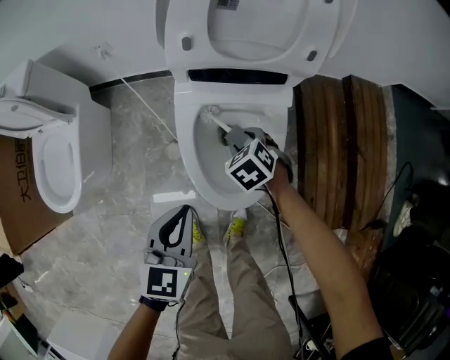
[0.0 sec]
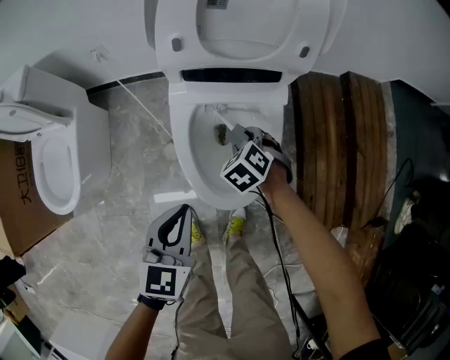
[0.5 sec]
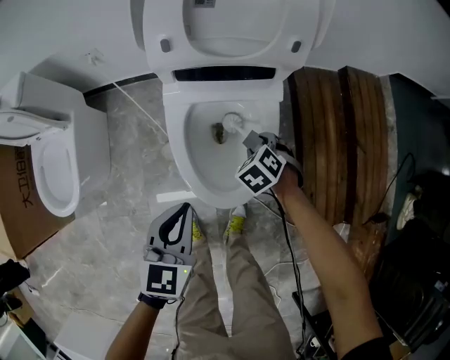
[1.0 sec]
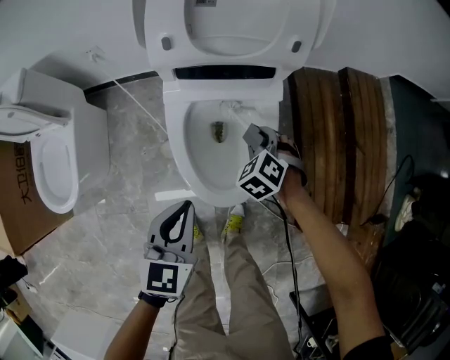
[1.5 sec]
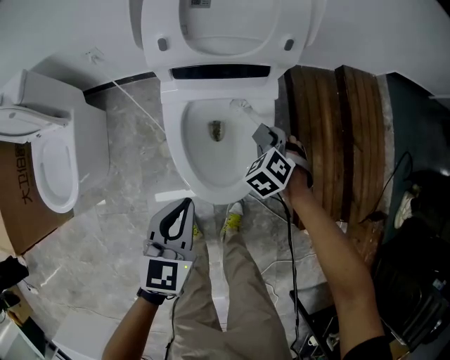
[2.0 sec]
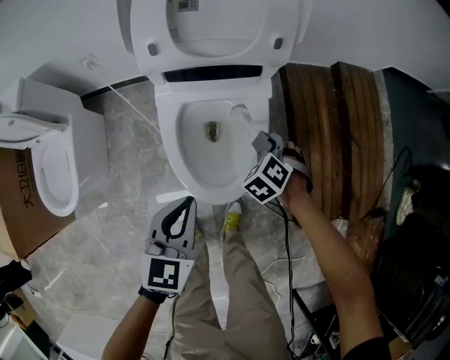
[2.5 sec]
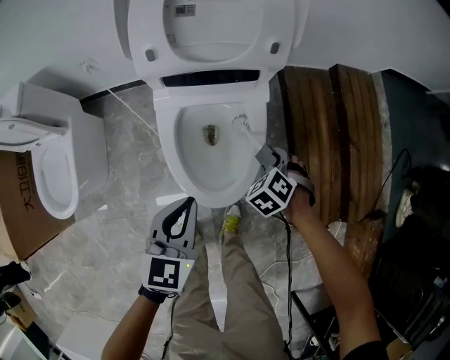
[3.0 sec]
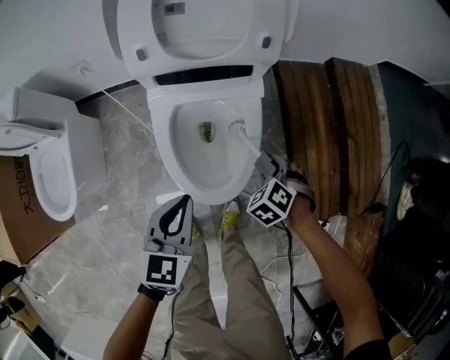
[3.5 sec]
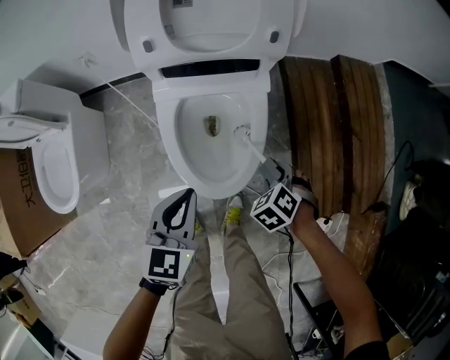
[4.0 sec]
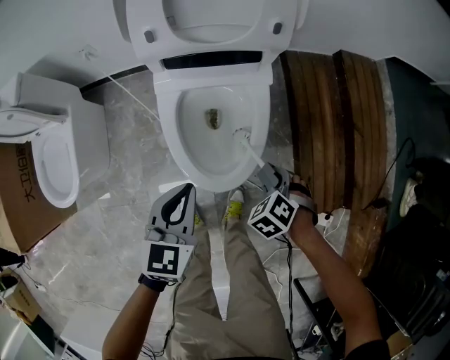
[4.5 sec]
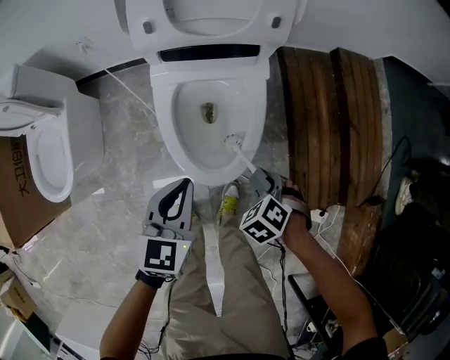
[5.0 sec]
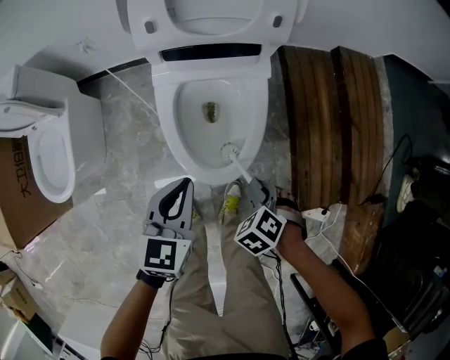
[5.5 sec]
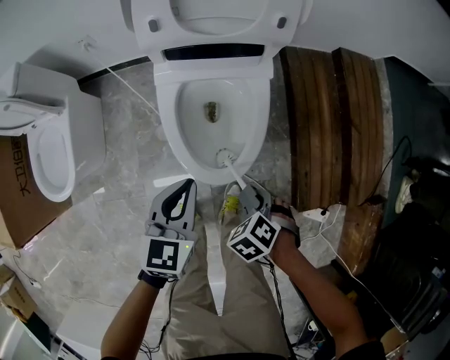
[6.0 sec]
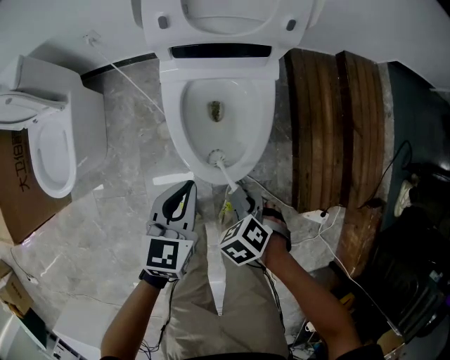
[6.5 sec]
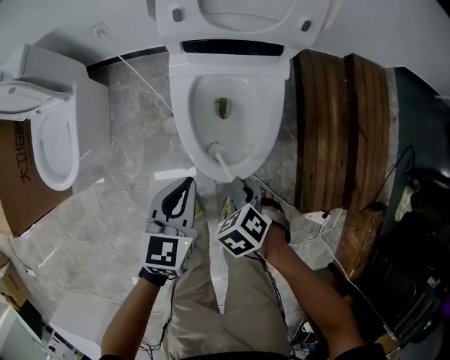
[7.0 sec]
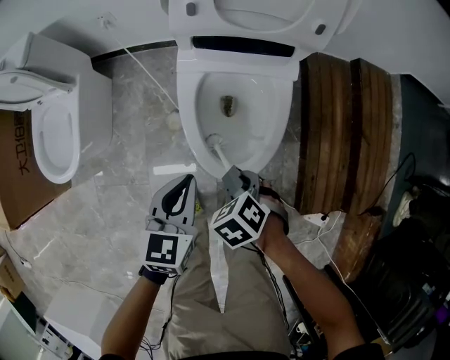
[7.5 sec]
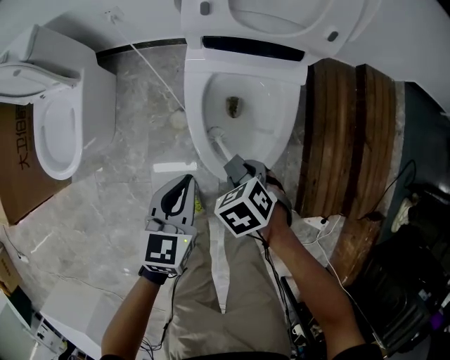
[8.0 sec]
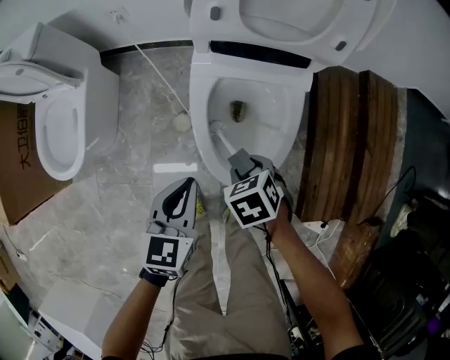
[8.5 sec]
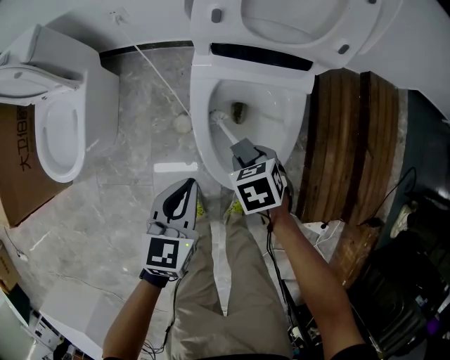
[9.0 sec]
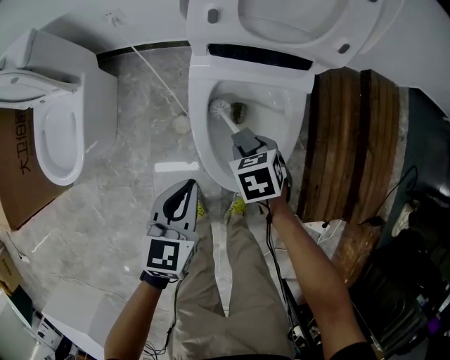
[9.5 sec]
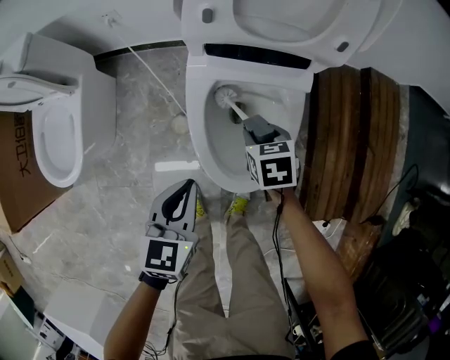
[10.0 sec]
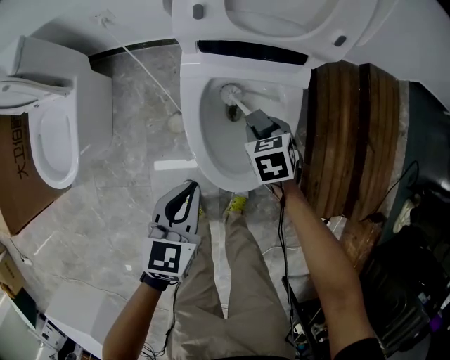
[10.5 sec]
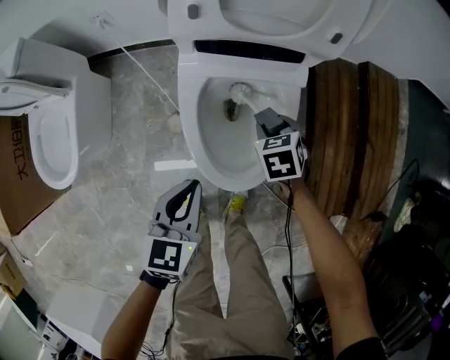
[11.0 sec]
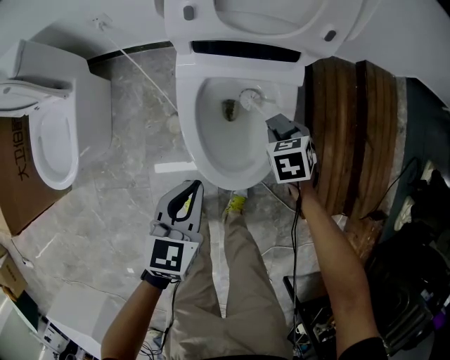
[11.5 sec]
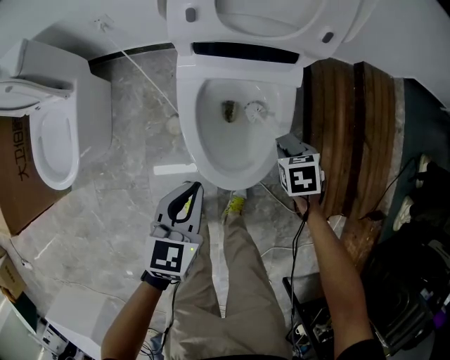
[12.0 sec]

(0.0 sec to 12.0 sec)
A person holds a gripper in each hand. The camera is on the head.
6.0 sec - 8.0 sec: The left gripper ends up some 10 cm from where it was.

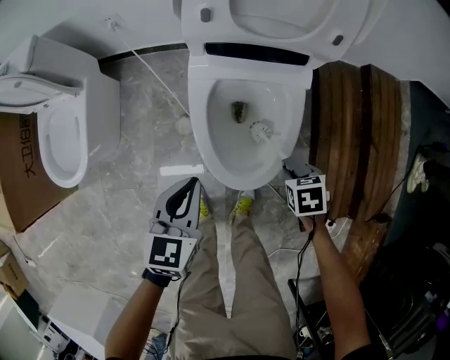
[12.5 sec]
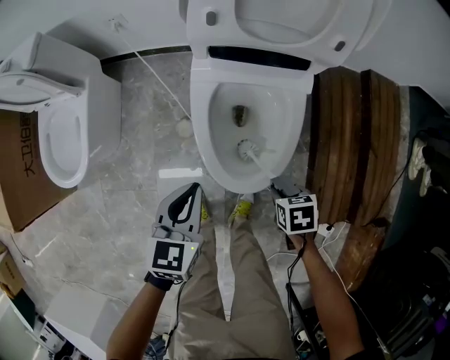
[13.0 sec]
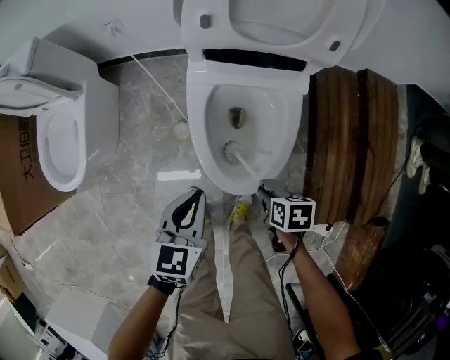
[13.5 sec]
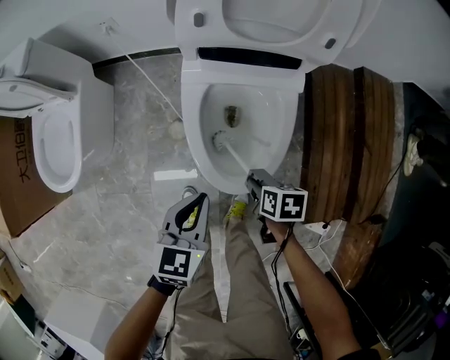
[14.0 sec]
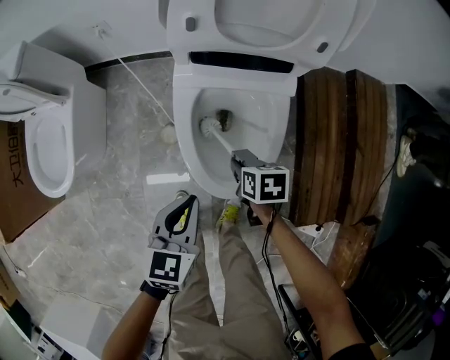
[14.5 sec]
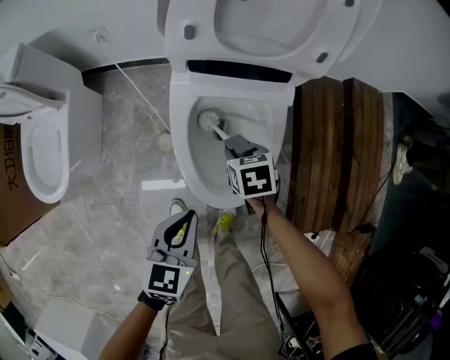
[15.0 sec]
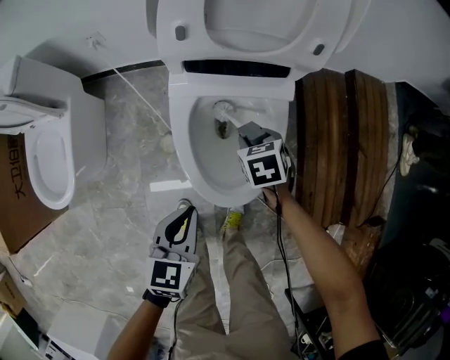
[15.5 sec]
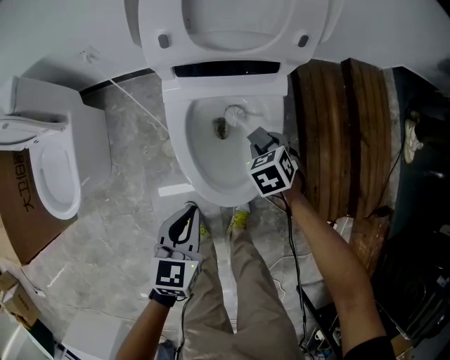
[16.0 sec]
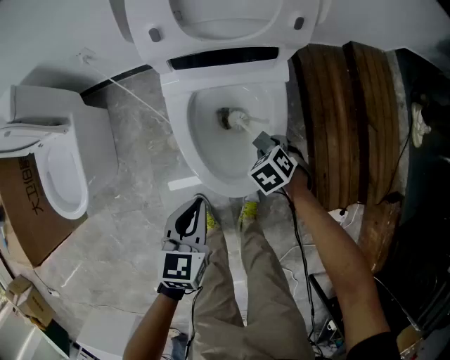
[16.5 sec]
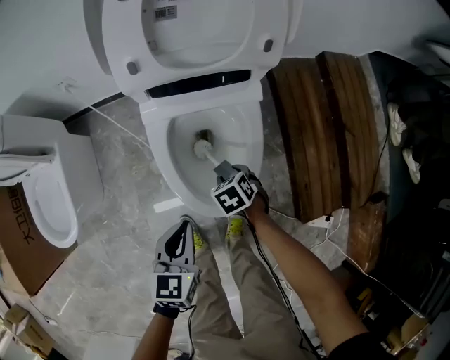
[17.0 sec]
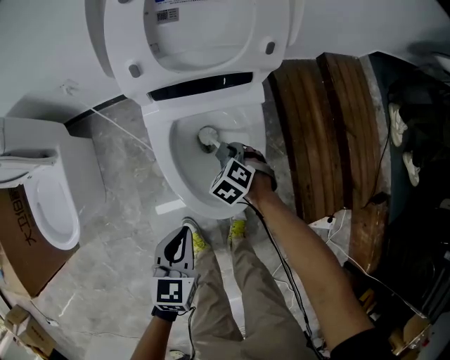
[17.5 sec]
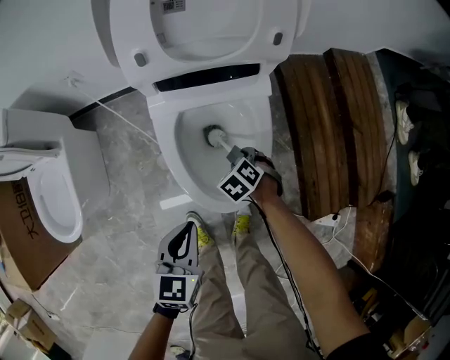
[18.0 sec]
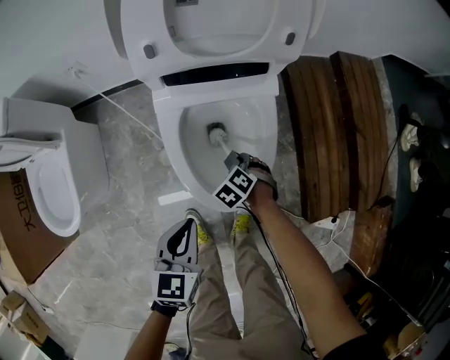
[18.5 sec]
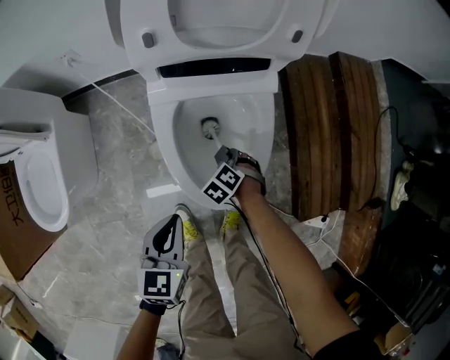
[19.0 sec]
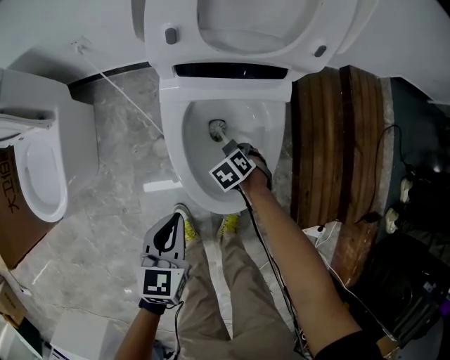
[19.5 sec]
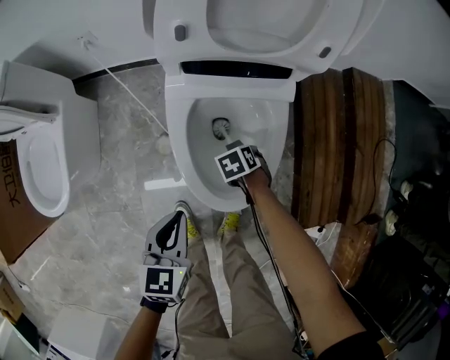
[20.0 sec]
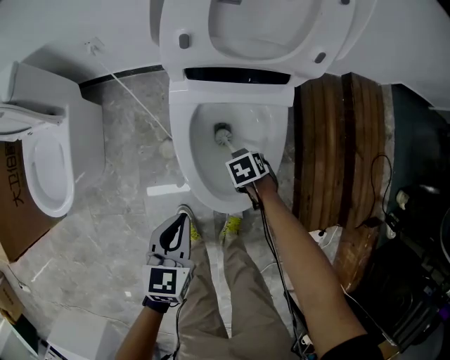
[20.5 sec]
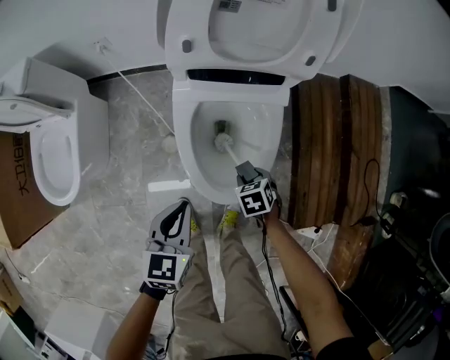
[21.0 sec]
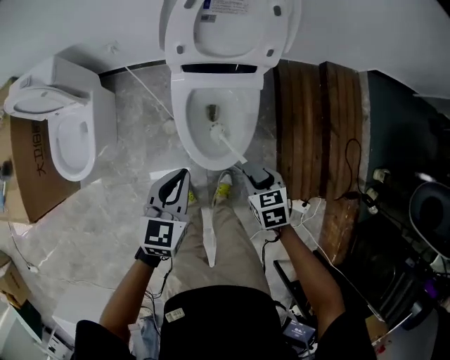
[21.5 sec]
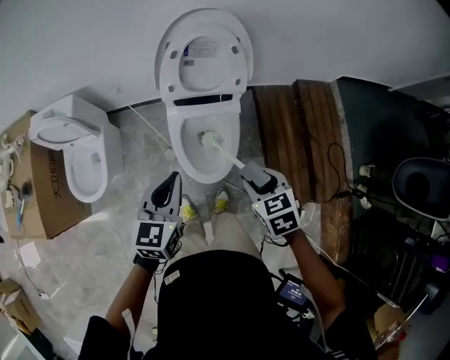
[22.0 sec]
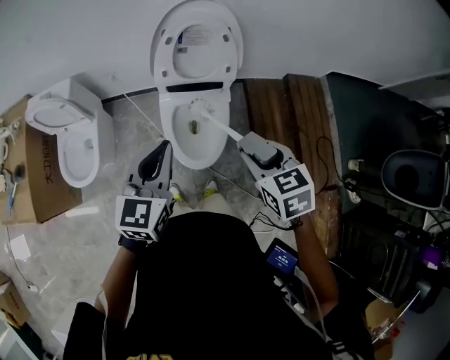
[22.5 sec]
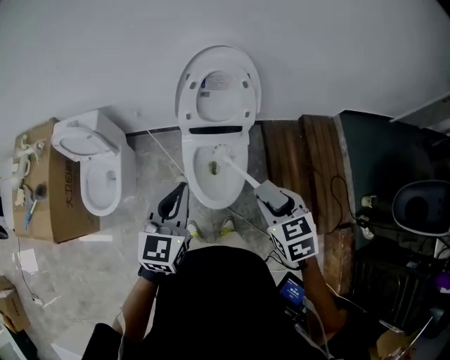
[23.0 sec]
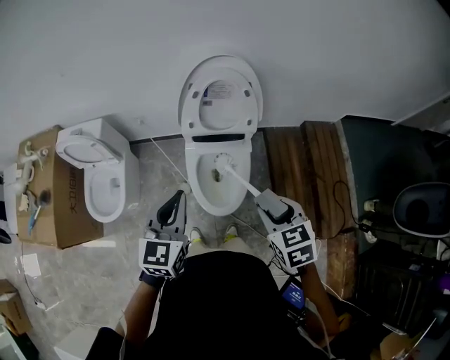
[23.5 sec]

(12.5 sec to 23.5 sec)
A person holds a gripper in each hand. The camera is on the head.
20.0 sec - 21.5 sec: The left gripper shifts some 20 cm upward.
21.5 sec - 23.5 sec: The left gripper moves upward, approximately 25 cm.

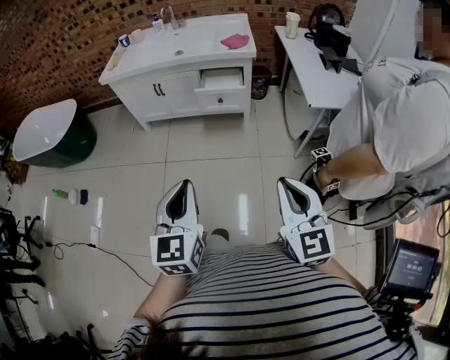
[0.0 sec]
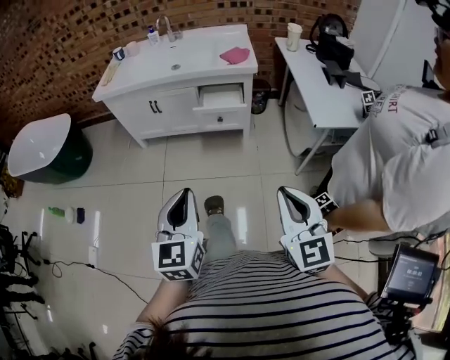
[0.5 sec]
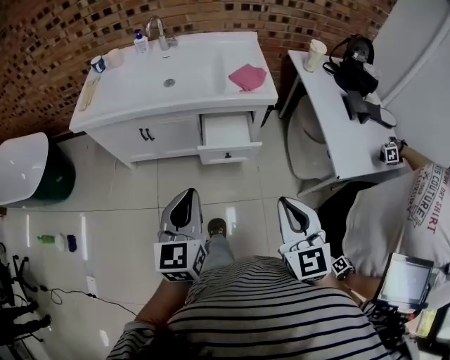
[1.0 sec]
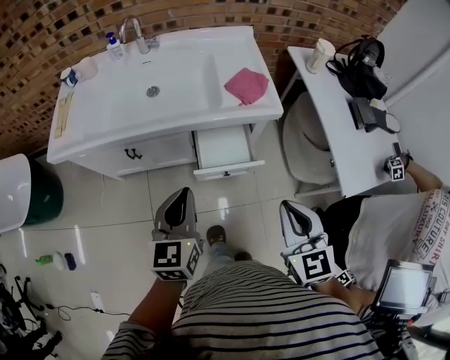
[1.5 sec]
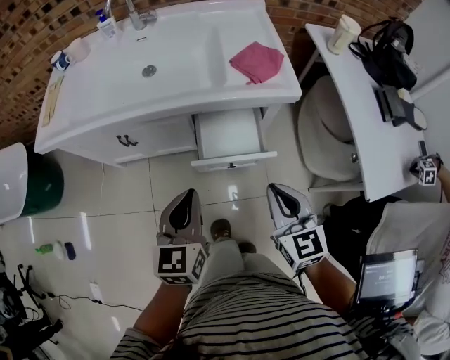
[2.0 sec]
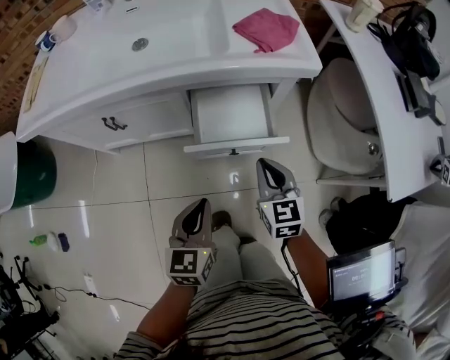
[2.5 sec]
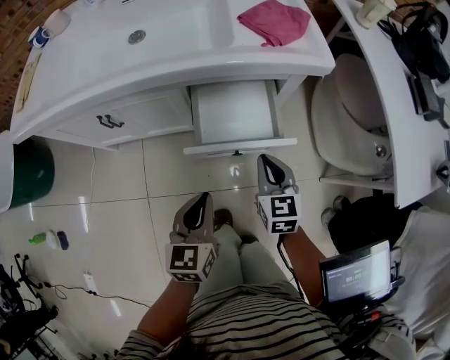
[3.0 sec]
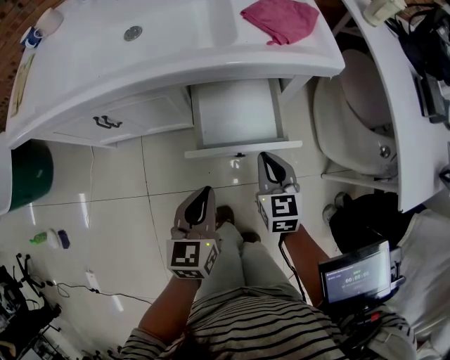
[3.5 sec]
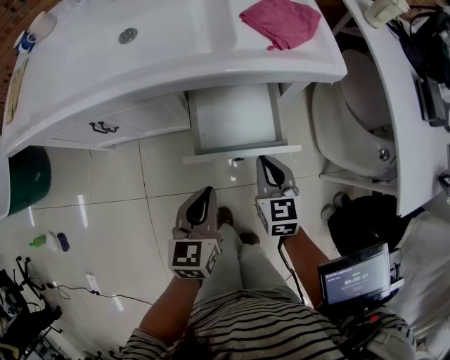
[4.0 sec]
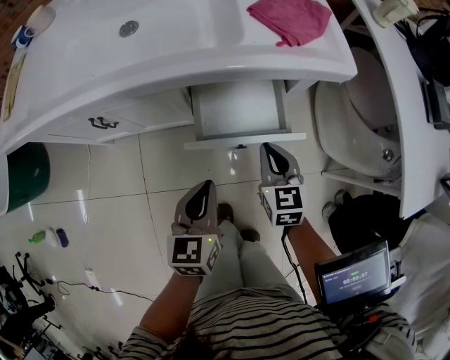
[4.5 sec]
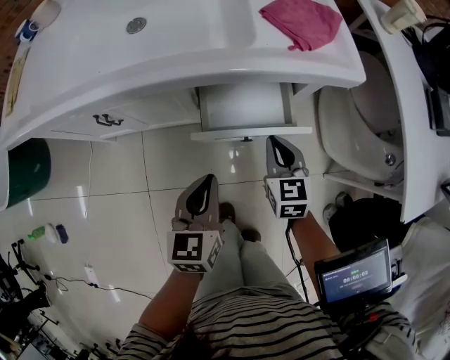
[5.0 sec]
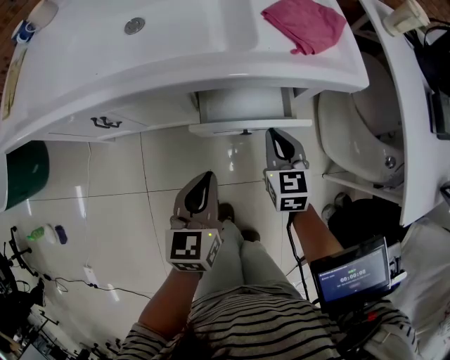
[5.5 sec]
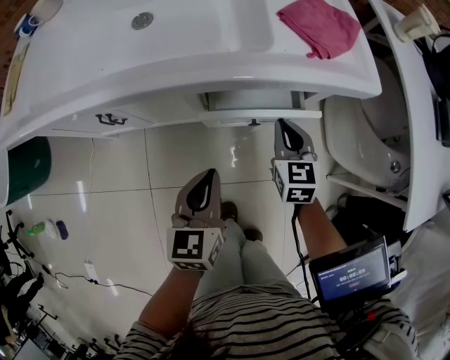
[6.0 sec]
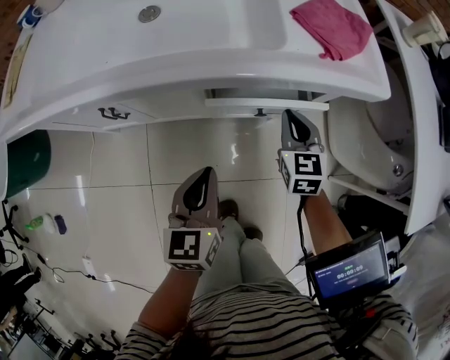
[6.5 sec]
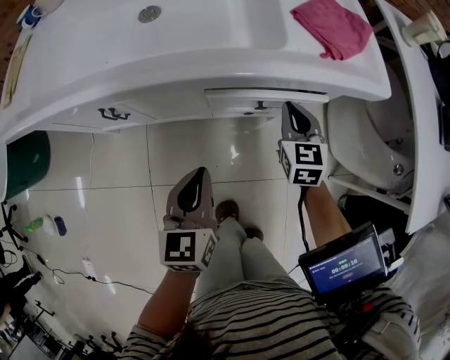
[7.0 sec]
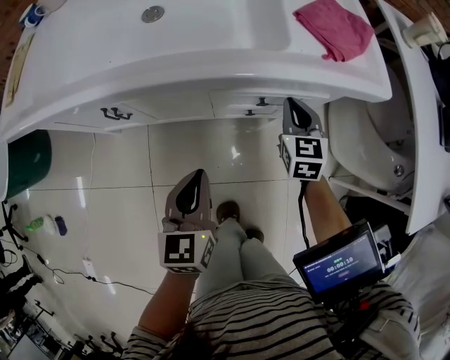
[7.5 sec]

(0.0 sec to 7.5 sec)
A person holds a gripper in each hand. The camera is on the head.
0.0 sec - 2.0 sec: The pair of grippers is taken forward, approximately 60 cm.
2.0 sec - 4.0 sec: The right gripper travels downward and forward by roughly 25 cm; the left gripper shifts roughly 20 cm downward.
4.0 sec - 5.5 sec: The right gripper is displaced forward by approximately 10 cm. The left gripper changes place by roughly 5 cm.
5.5 sec - 7.5 sec: The left gripper travels to the left by some 5 cm, while the right gripper shifts about 10 cm forward.
